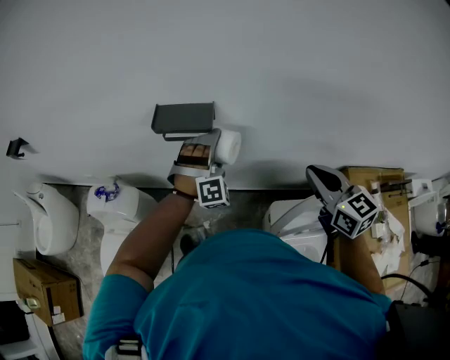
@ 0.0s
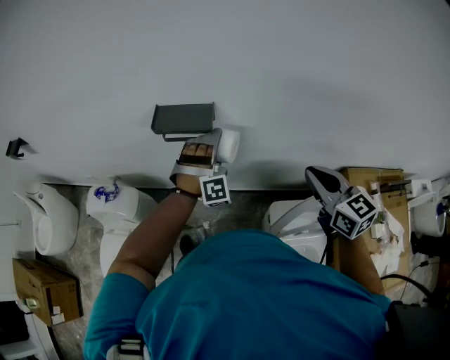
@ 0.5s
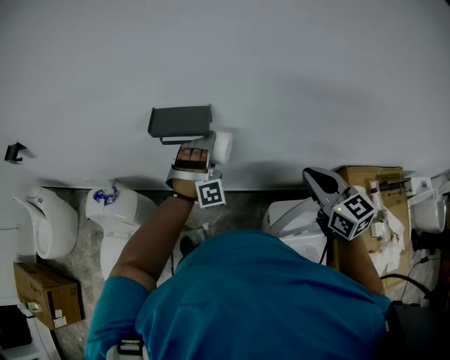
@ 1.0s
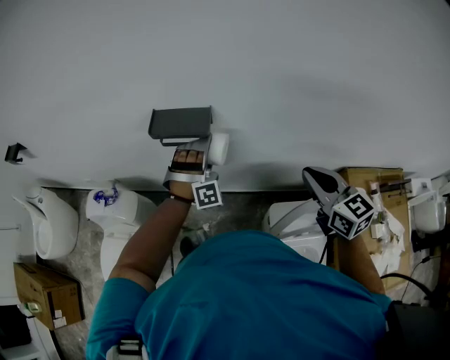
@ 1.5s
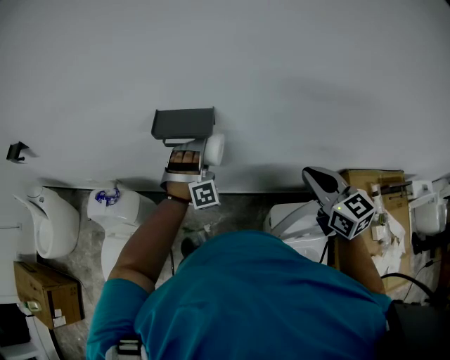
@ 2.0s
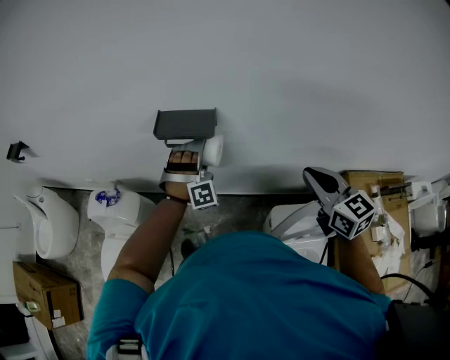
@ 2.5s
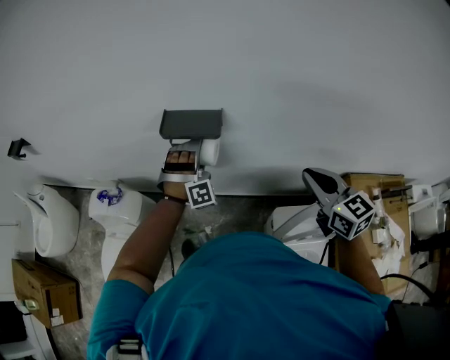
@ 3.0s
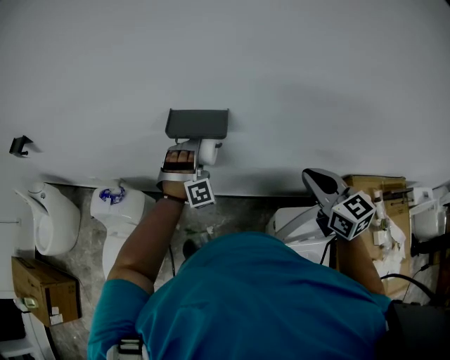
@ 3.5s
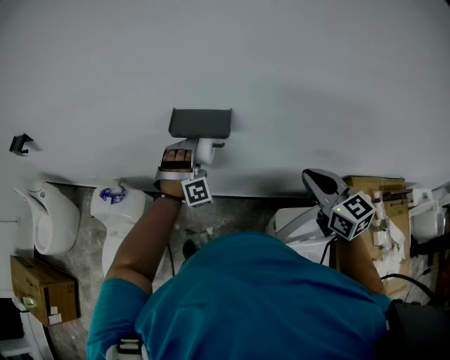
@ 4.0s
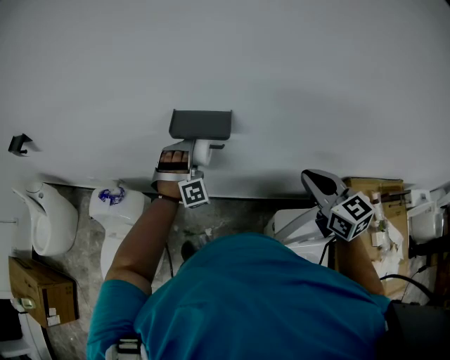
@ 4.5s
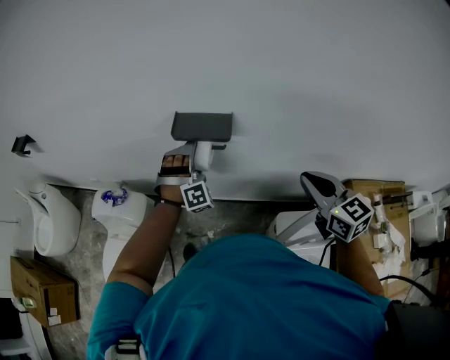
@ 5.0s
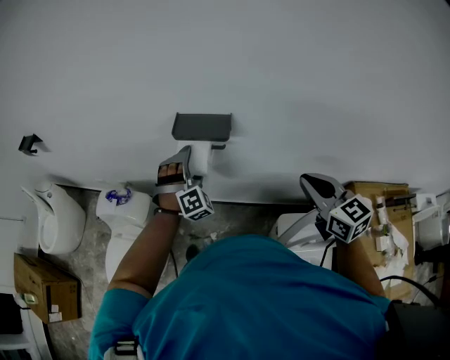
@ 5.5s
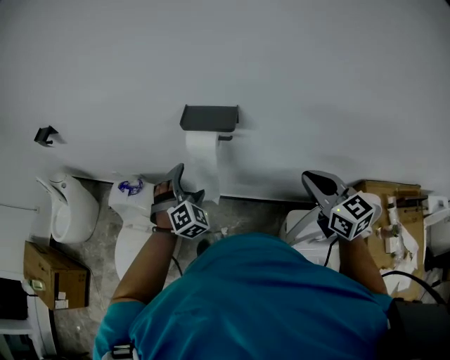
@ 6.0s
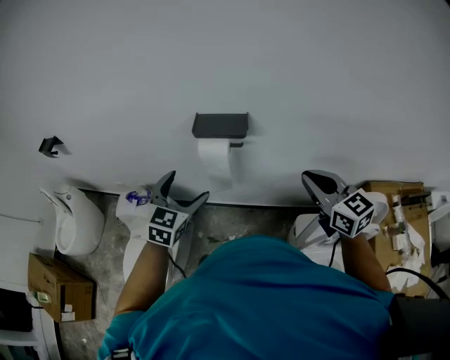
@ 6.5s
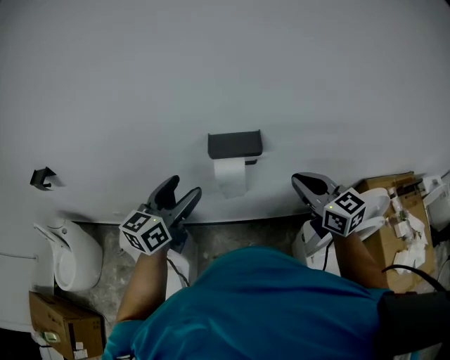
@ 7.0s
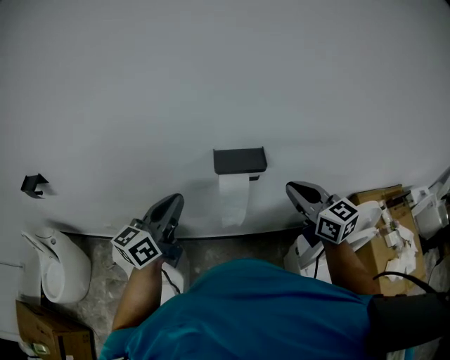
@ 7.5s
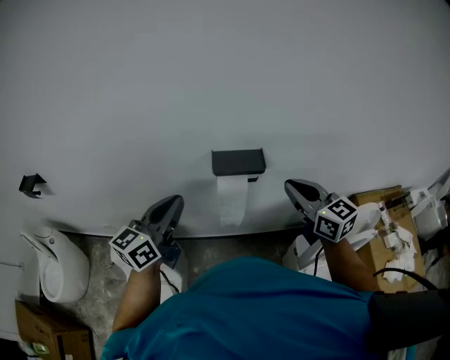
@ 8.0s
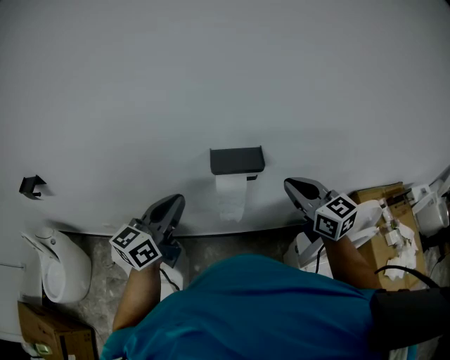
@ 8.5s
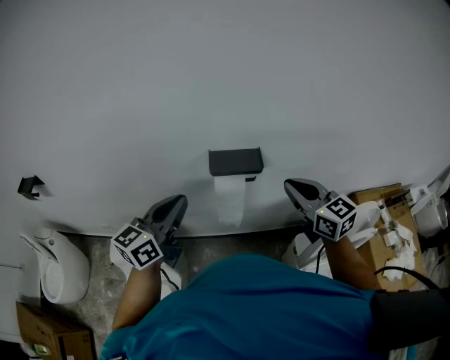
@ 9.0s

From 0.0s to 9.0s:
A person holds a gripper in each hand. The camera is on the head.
From 0.0s to 2.0s: The grippers make only small movements.
From 2.0s to 4.5s: The left gripper travels to the left by approximately 5 cm.
From 4.5s to 7.0s: The right gripper changes place by about 15 cm, while the left gripper goes some 20 cm upward, and rotates around the line of its fingers by roughly 90 degrees, counterclockwise from behind.
From 7.0s to 9.0s: The left gripper closes its fingers.

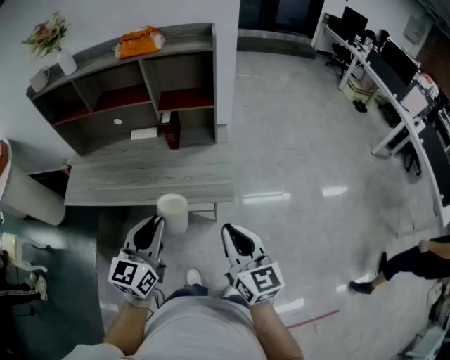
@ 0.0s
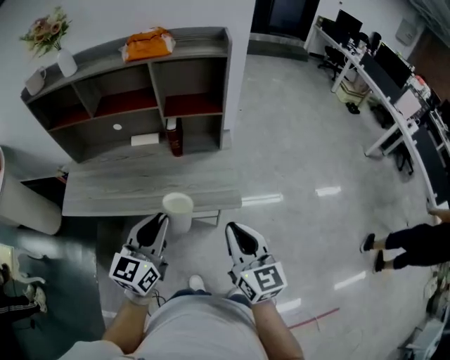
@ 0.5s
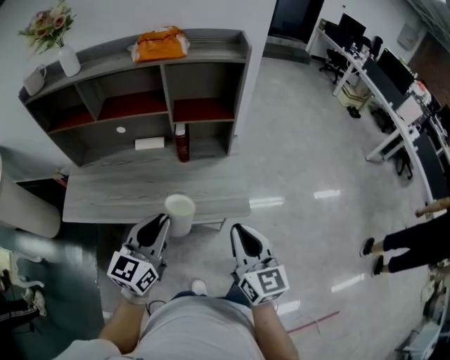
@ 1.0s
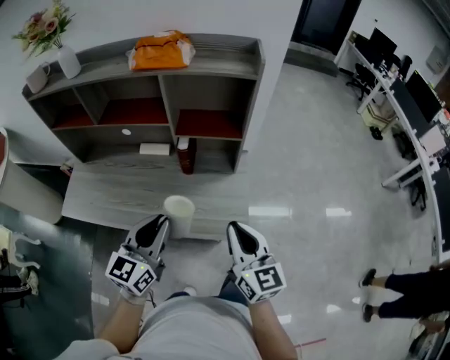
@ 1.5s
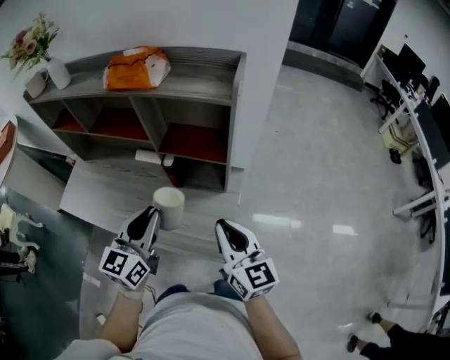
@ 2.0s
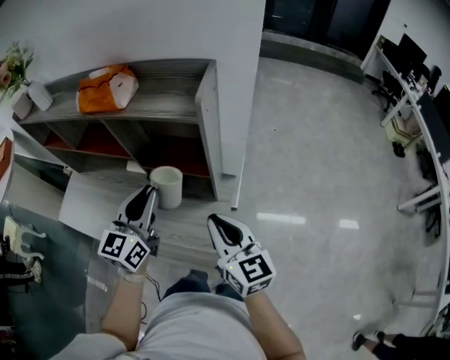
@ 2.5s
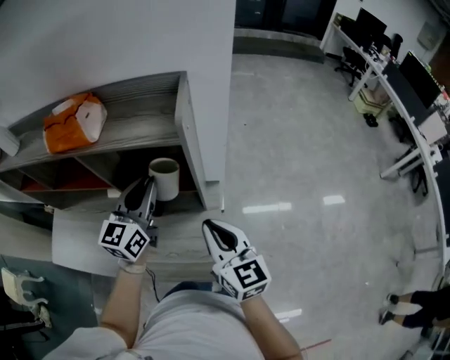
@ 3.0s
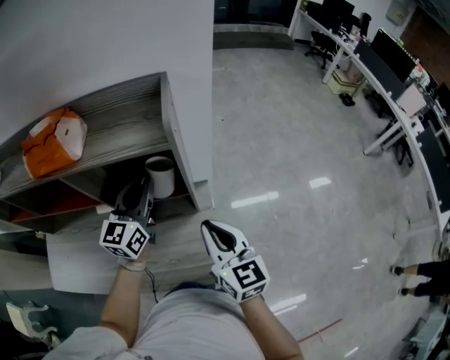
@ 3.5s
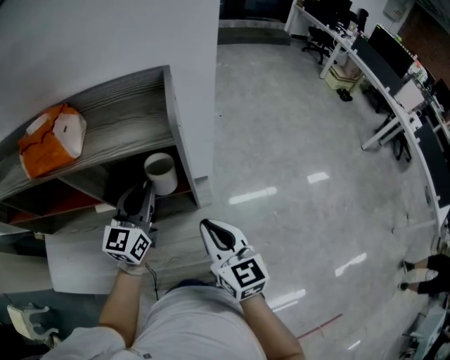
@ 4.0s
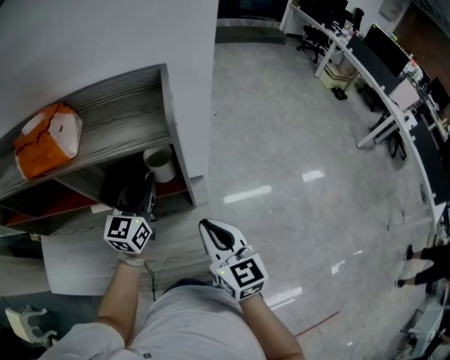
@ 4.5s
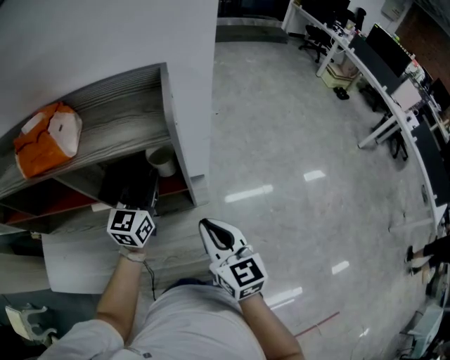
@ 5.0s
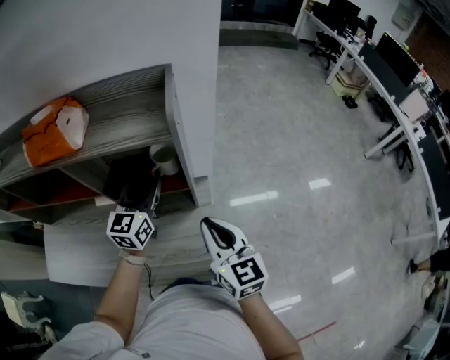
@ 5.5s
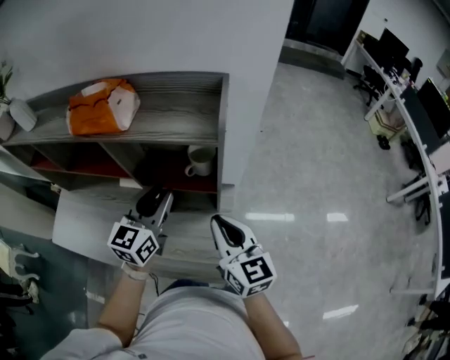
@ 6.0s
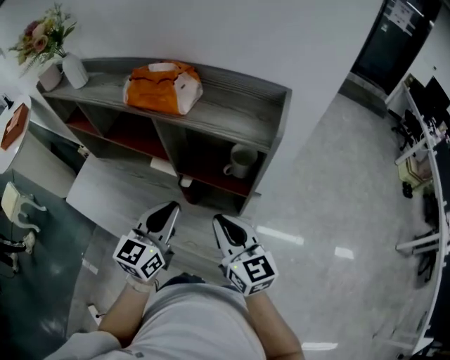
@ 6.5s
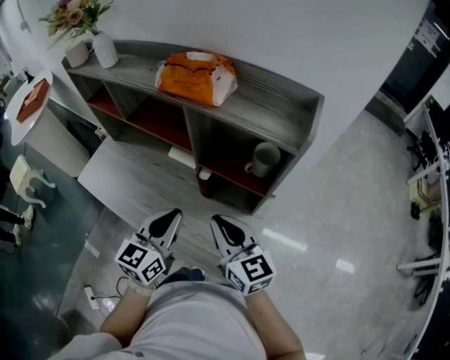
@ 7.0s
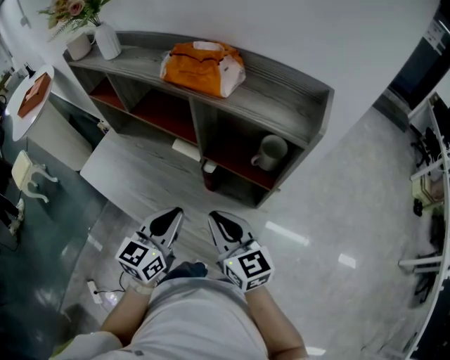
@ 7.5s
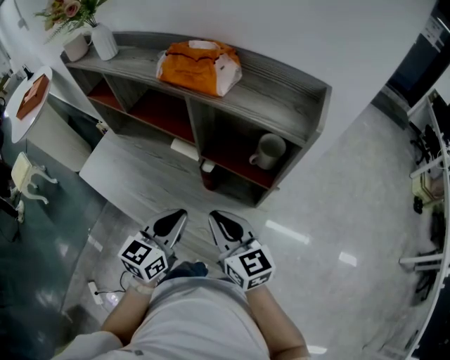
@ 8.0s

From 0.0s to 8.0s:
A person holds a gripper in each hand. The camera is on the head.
From 0.0s to 2.0s: The two grippers go about 30 cm forward.
From 2.0s to 4.0s: The right gripper is displaced forward by some 10 cm; the left gripper goes approximately 25 cm forward.
From 4.0s to 6.0s: The left gripper is displaced backward by about 5 cm.
From 6.0s to 8.0s: The right gripper heads to the left, covering roughly 15 cm, and changes its angle by approximately 30 degrees. The left gripper goes approximately 15 cm backward and to the left, and closes its fingers.

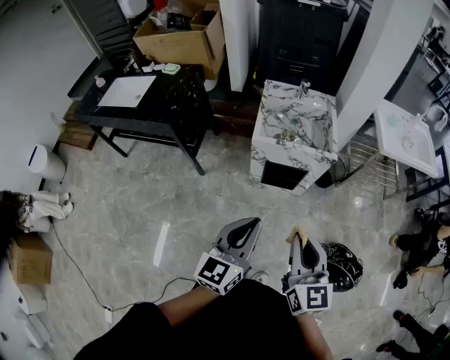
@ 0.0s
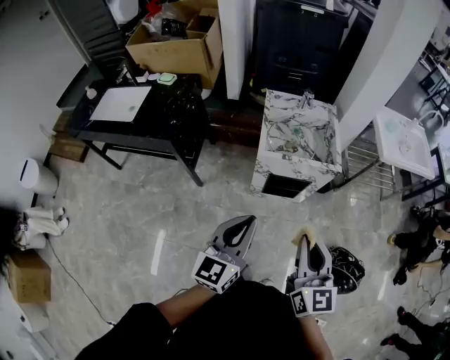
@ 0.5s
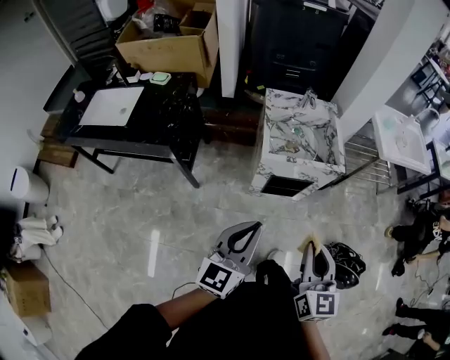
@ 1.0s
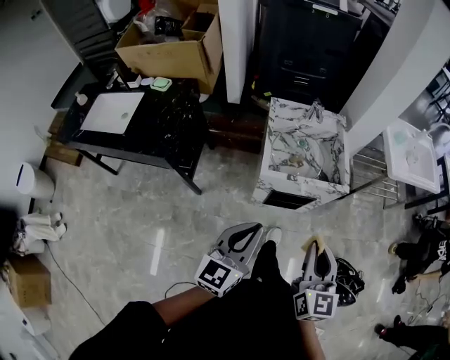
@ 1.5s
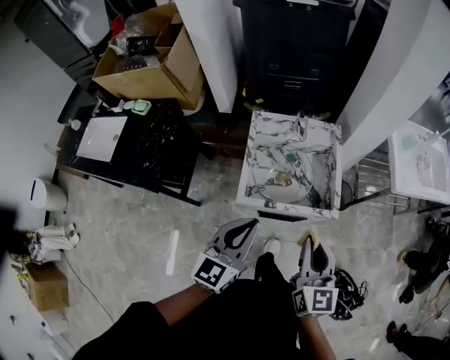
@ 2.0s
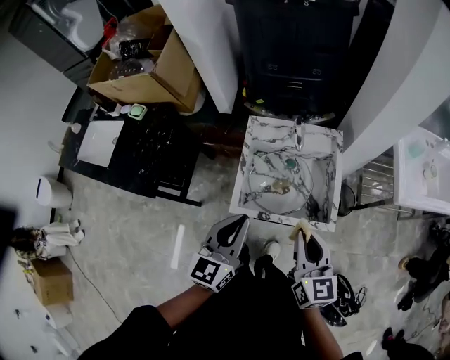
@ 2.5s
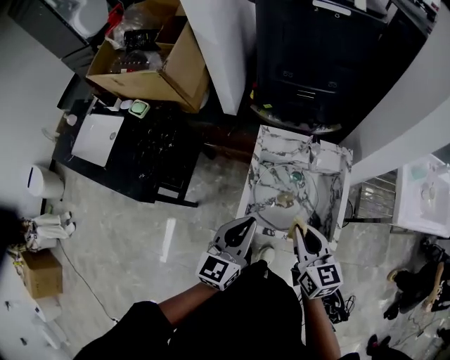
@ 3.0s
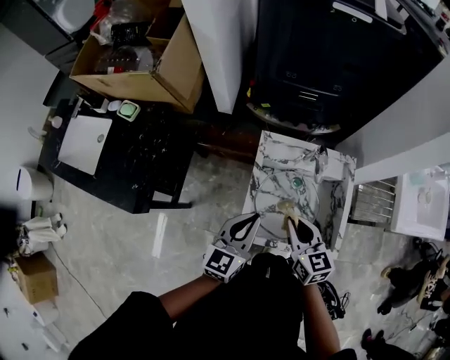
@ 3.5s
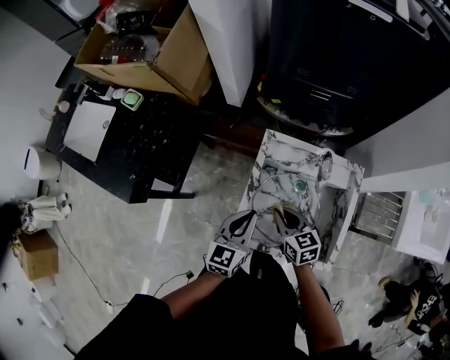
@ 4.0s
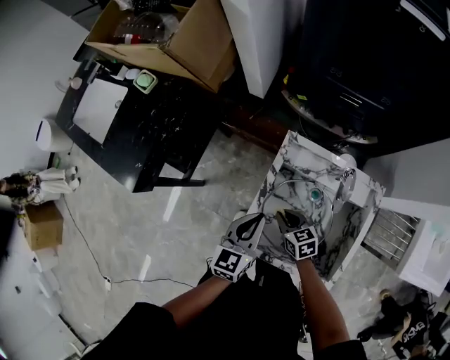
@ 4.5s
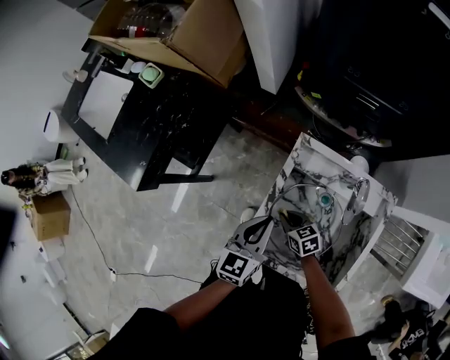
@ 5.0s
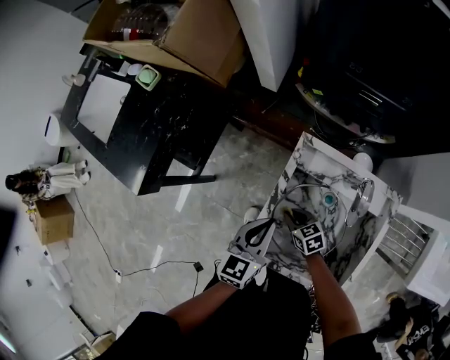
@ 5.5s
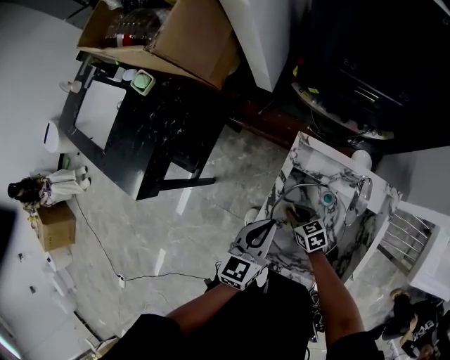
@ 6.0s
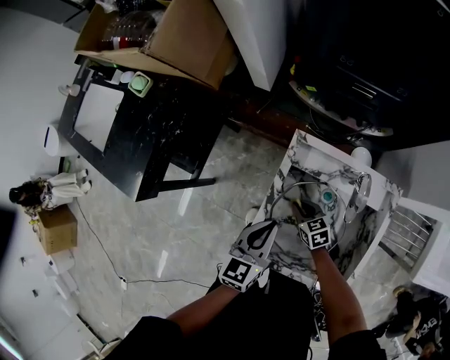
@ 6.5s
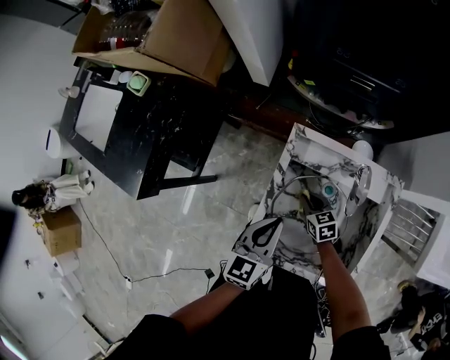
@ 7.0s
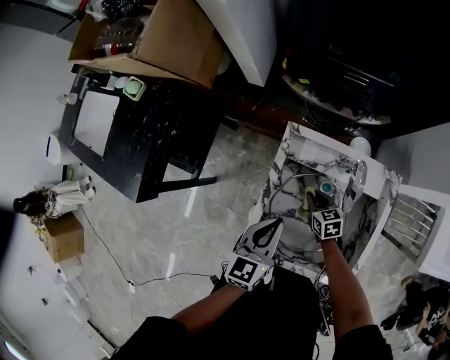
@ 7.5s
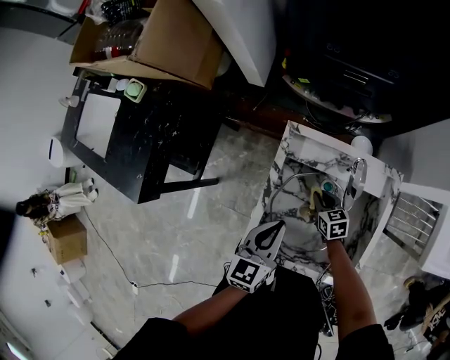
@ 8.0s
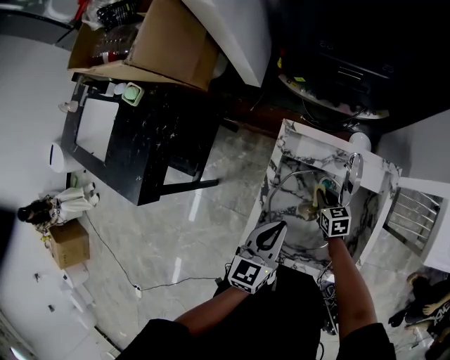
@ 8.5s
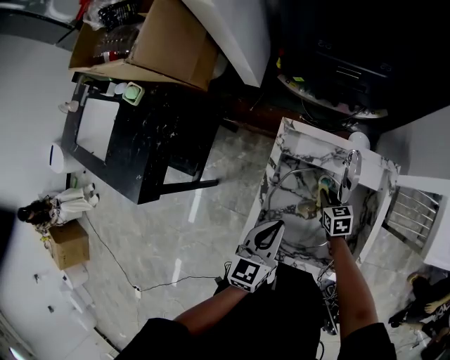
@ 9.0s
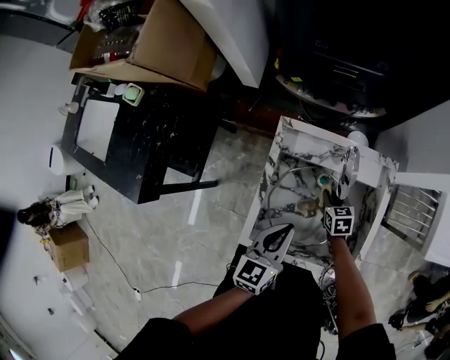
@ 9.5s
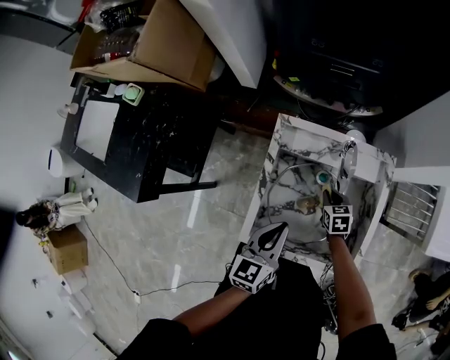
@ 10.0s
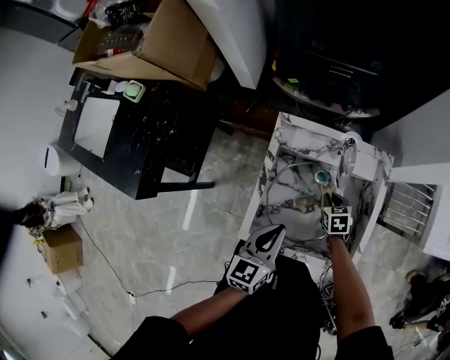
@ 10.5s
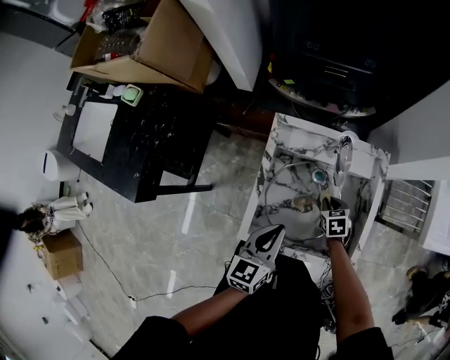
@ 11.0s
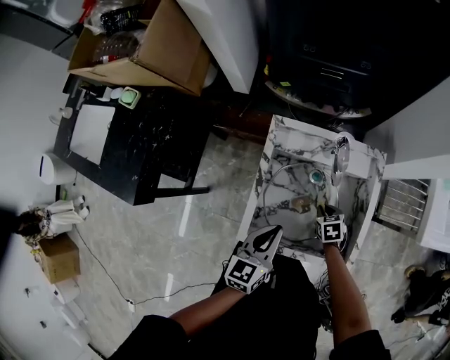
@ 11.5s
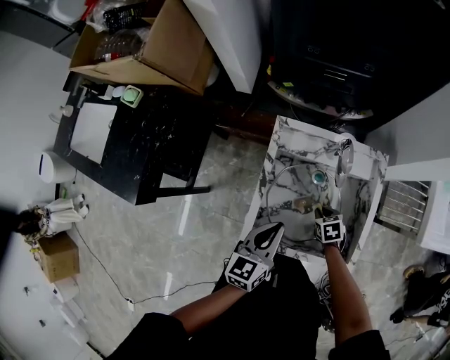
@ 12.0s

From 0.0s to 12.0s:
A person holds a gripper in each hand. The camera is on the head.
From 0.0s to 2.0s: The two grippers go roughly 35 cm forward.
From 2.0s to 4.0s: The left gripper shifts by about 25 cm, and swivels about 20 degrees; the right gripper changes place by roughly 35 cm, and rotates about 40 degrees.
From 4.0s to 6.0s: The left gripper goes about 5 cm downward. Meanwhile the right gripper is displaced downward by approximately 20 cm, and swivels roughly 20 degrees.
From 6.0s to 8.0s: The right gripper moves to the right, some 10 cm.
From 8.0s to 10.0s: The right gripper shifts about 5 cm to the right.
From 10.0s to 12.0s: The right gripper moves backward, approximately 5 cm.
